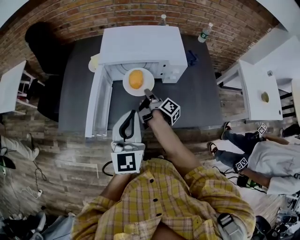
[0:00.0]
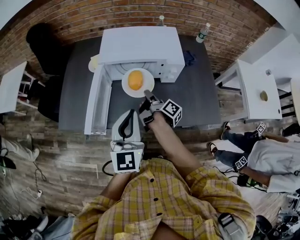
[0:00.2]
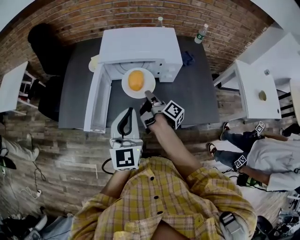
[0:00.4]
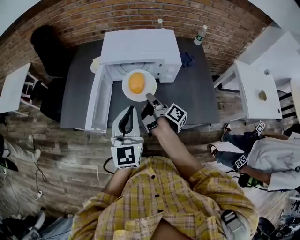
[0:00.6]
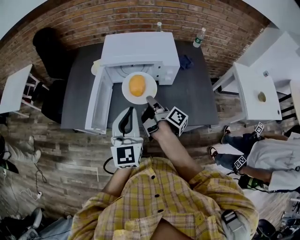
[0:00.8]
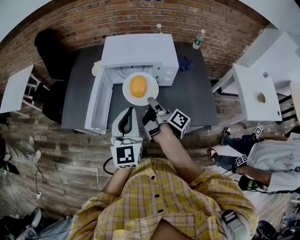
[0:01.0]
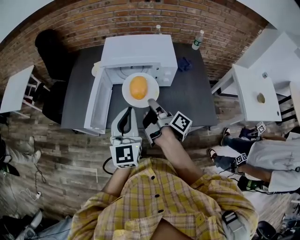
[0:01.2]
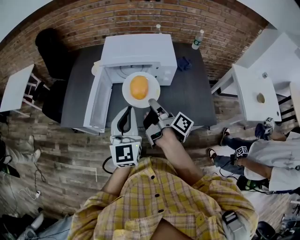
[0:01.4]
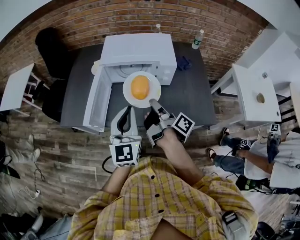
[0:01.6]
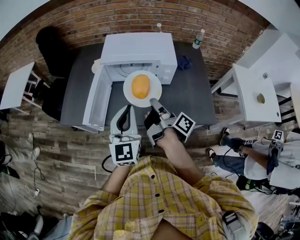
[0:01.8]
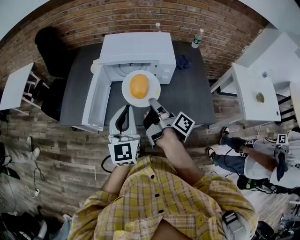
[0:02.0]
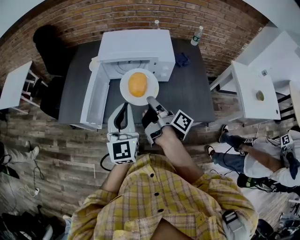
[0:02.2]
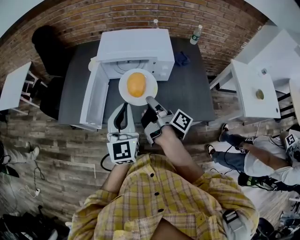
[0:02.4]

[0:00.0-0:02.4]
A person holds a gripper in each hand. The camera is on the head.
0:00.0 to 0:01.2: The right gripper goes about 20 cm upward and backward; the left gripper moves some 5 cm.
0:01.2 to 0:02.4: The grippers move only a little.

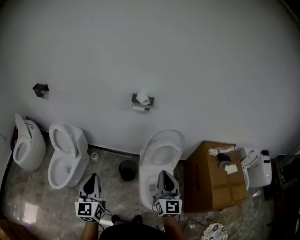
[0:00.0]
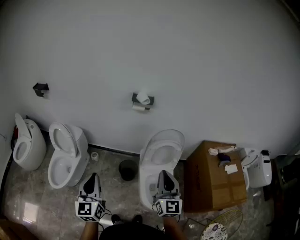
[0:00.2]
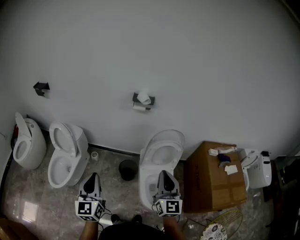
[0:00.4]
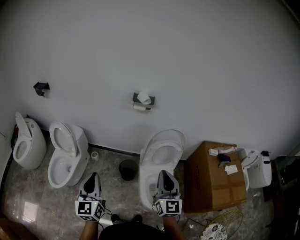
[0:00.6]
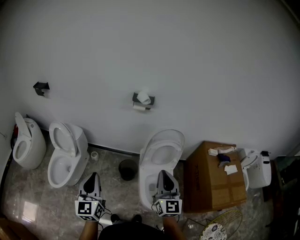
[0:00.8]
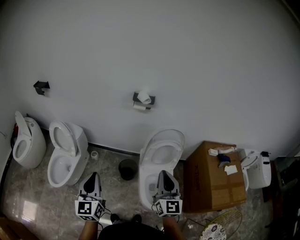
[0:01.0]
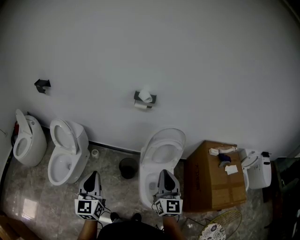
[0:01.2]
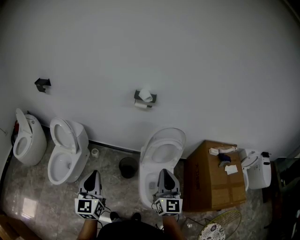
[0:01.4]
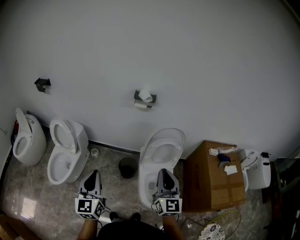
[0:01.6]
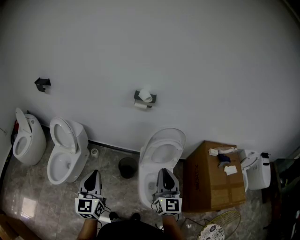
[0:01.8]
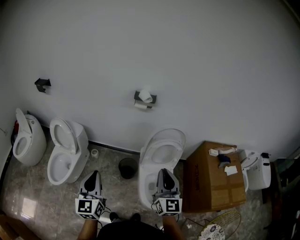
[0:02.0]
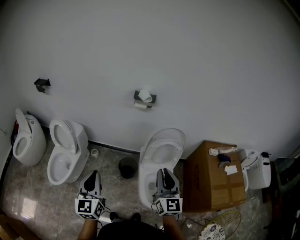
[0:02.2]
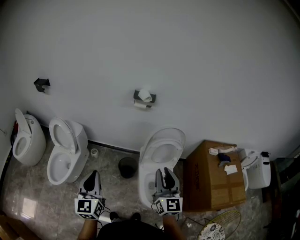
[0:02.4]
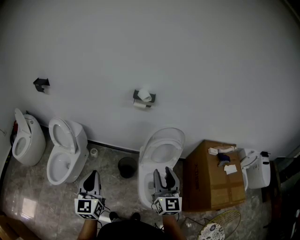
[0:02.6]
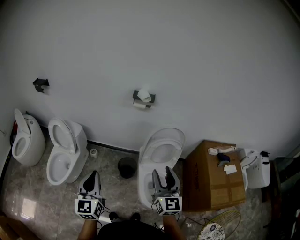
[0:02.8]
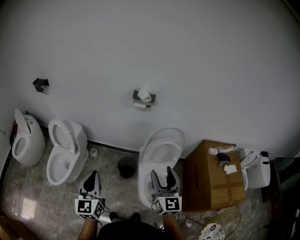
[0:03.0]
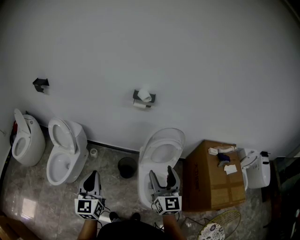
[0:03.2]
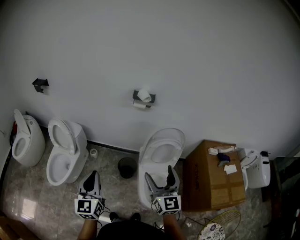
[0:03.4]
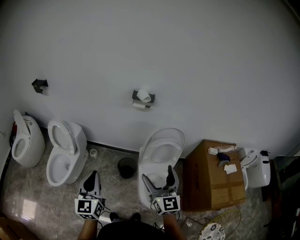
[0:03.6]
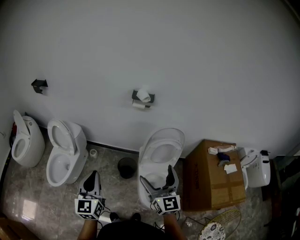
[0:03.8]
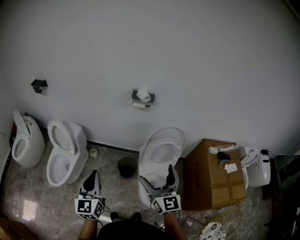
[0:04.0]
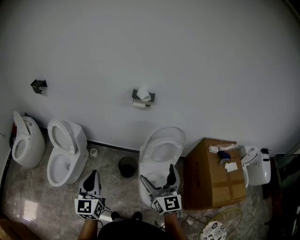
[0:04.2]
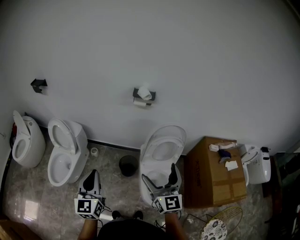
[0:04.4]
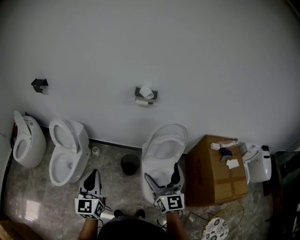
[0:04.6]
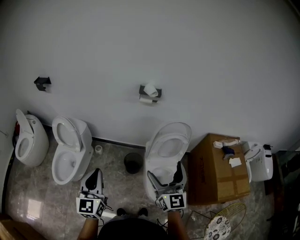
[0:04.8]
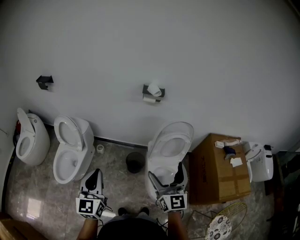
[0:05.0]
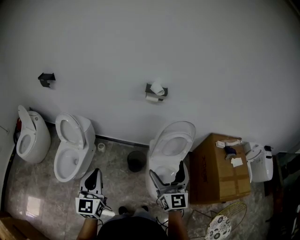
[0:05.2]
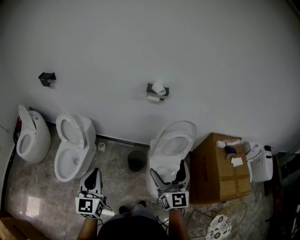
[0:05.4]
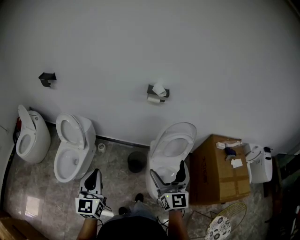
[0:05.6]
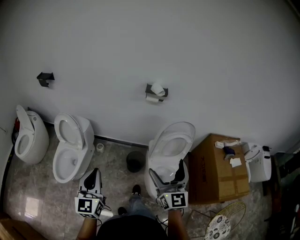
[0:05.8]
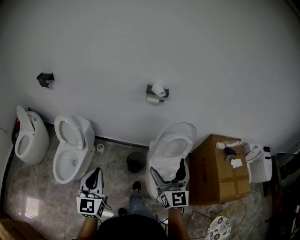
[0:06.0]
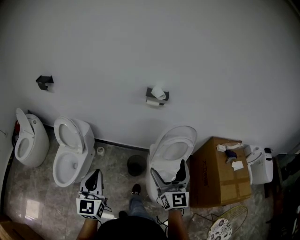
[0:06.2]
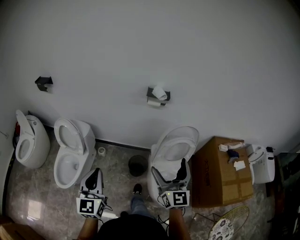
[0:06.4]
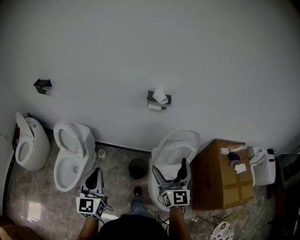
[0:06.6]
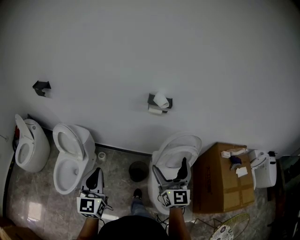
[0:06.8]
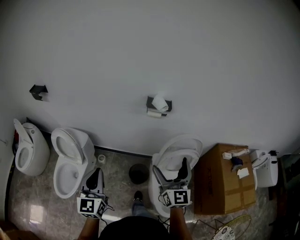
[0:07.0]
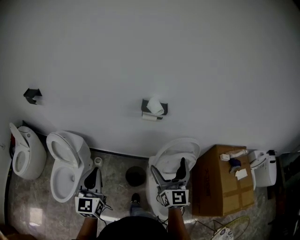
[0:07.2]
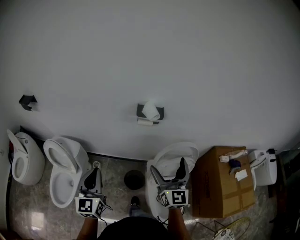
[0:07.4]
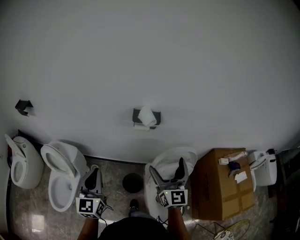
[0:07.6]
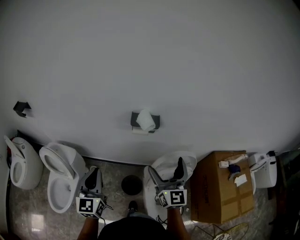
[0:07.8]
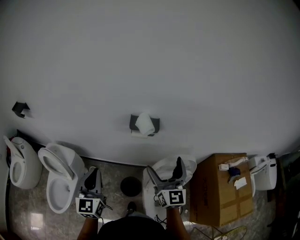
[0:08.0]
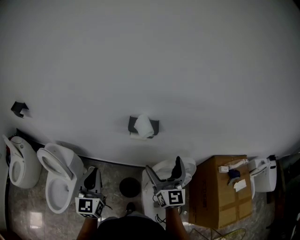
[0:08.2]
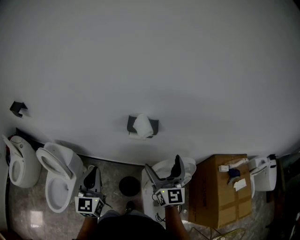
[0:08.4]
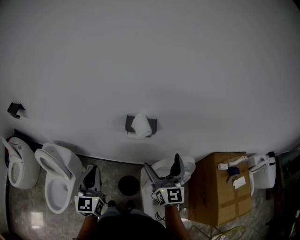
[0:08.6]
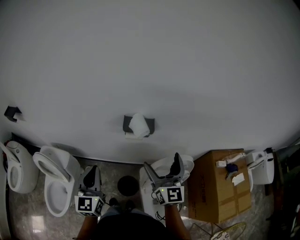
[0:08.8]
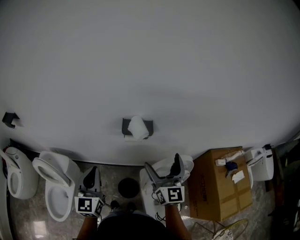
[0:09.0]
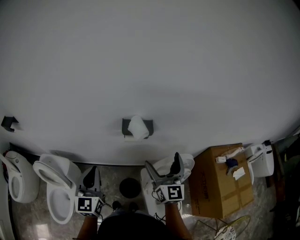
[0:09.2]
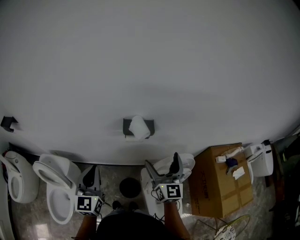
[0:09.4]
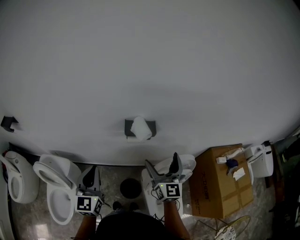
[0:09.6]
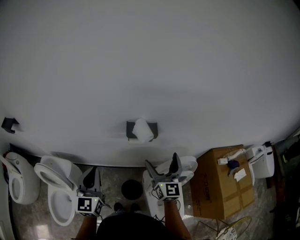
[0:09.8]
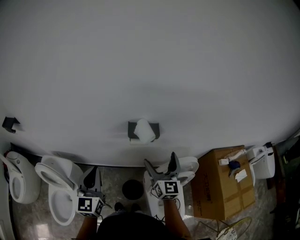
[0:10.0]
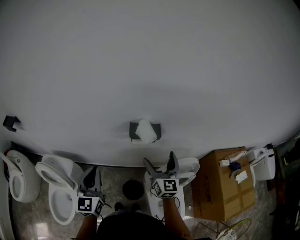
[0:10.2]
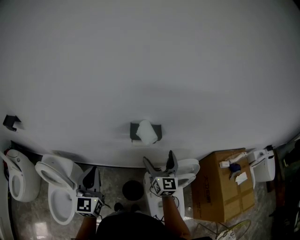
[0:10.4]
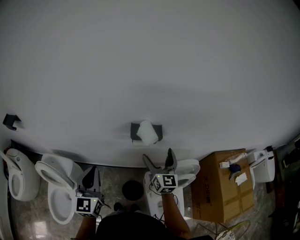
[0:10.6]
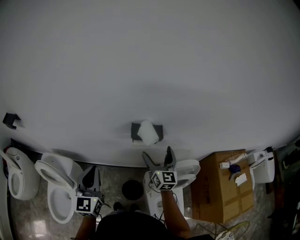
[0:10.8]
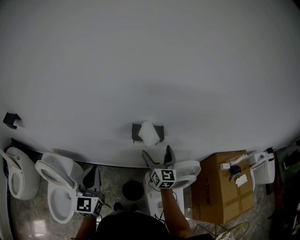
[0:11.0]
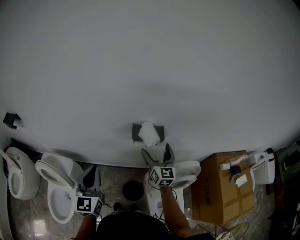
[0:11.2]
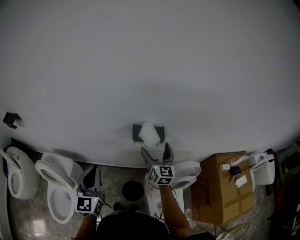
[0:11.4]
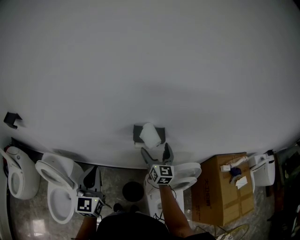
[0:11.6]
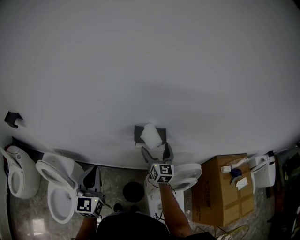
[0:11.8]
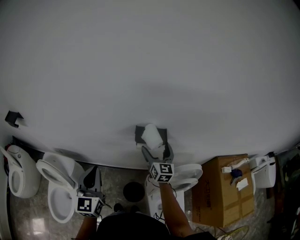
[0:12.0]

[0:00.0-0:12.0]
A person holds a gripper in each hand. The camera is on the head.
0:00.0 to 0:01.6: Both grippers stay put.
0:01.6 to 0:03.0: The right gripper opens its fingers.
0:03.0 to 0:04.4: The right gripper opens.
0:04.4 to 0:06.0: The grippers both shift to the left by about 5 cm.
0:06.0 to 0:07.6: The two grippers go about 30 cm forward.
0:07.6 to 0:09.0: Both grippers move forward, roughly 10 cm.
0:09.0 to 0:10.4: The right gripper goes roughly 10 cm downward and forward, while the left gripper changes place by approximately 5 cm.
0:10.4 to 0:12.0: The right gripper is displaced forward by about 10 cm.

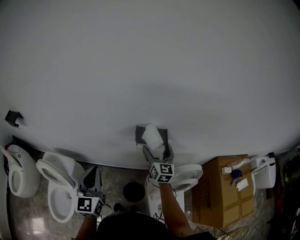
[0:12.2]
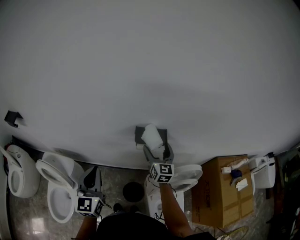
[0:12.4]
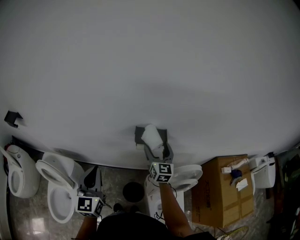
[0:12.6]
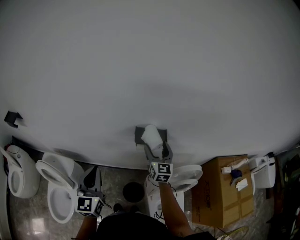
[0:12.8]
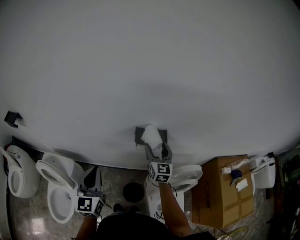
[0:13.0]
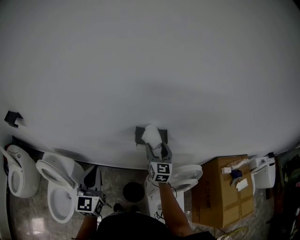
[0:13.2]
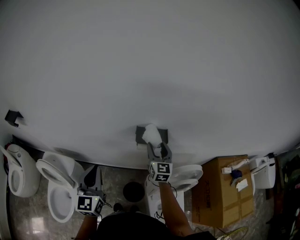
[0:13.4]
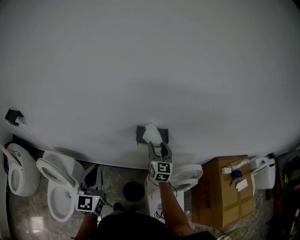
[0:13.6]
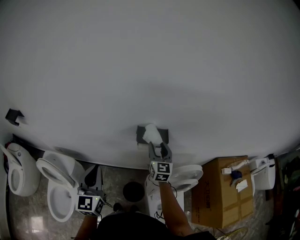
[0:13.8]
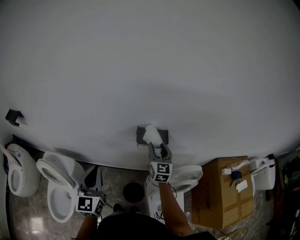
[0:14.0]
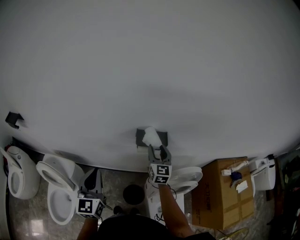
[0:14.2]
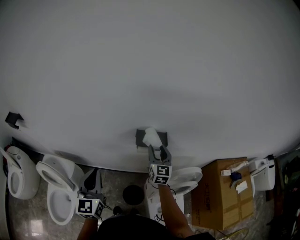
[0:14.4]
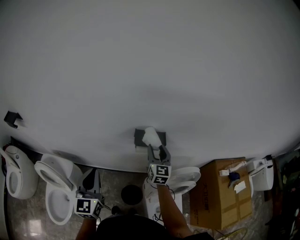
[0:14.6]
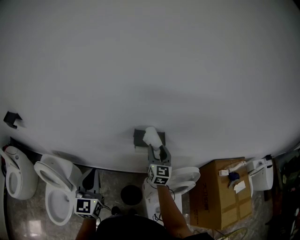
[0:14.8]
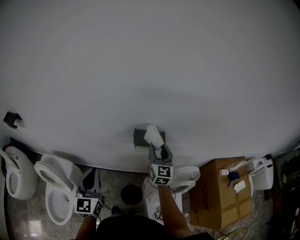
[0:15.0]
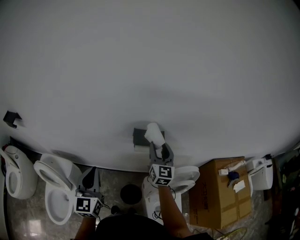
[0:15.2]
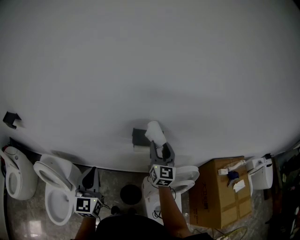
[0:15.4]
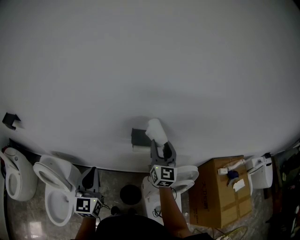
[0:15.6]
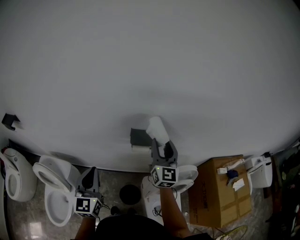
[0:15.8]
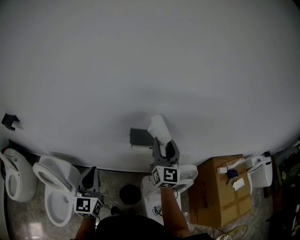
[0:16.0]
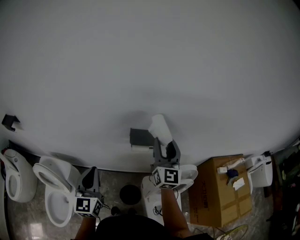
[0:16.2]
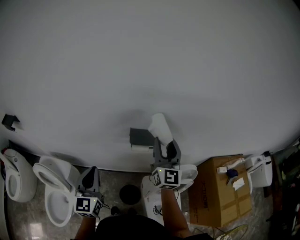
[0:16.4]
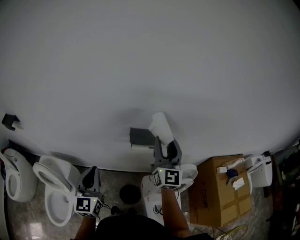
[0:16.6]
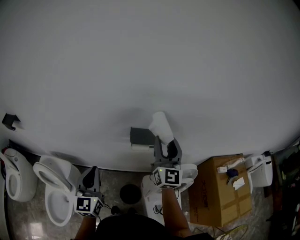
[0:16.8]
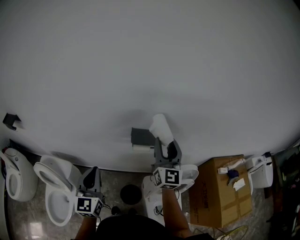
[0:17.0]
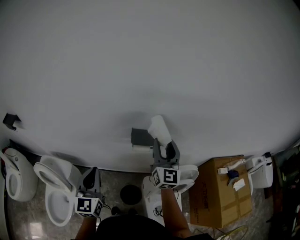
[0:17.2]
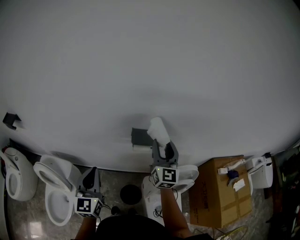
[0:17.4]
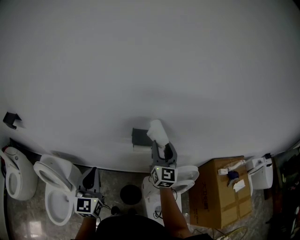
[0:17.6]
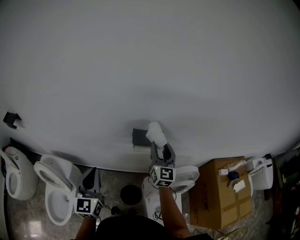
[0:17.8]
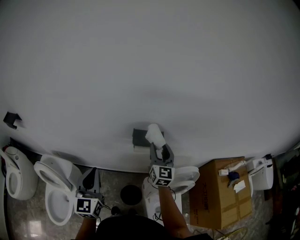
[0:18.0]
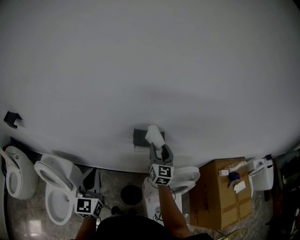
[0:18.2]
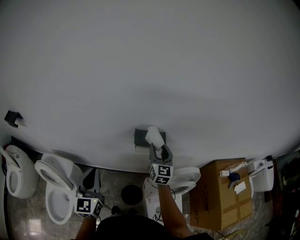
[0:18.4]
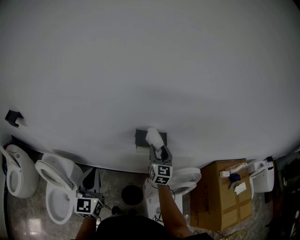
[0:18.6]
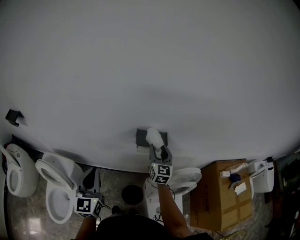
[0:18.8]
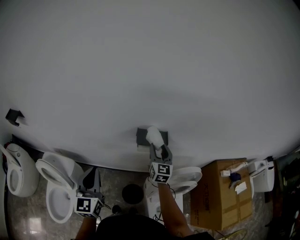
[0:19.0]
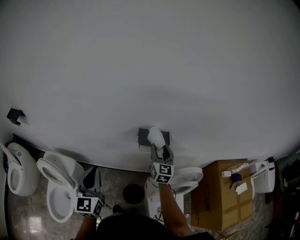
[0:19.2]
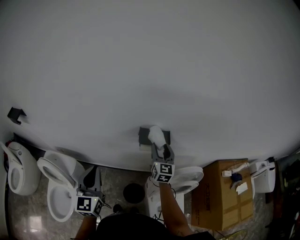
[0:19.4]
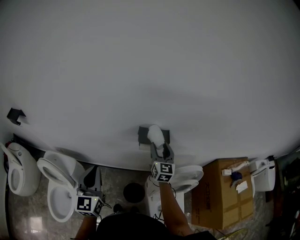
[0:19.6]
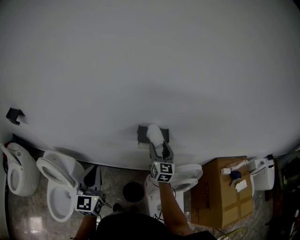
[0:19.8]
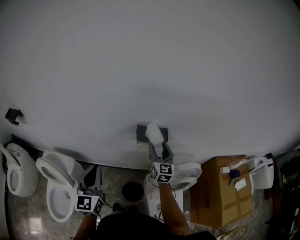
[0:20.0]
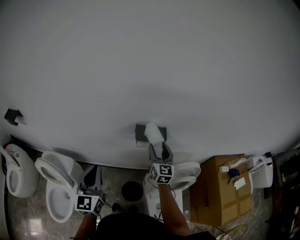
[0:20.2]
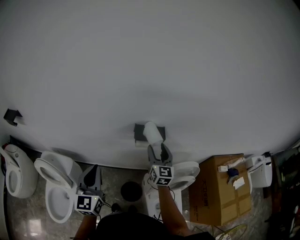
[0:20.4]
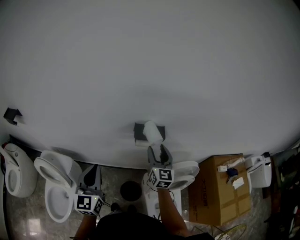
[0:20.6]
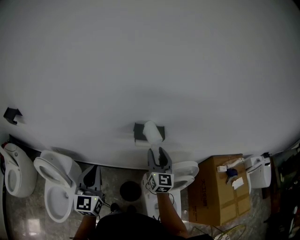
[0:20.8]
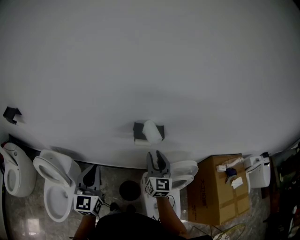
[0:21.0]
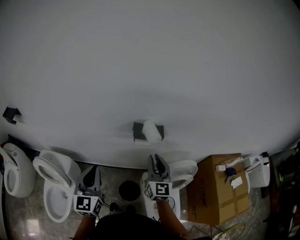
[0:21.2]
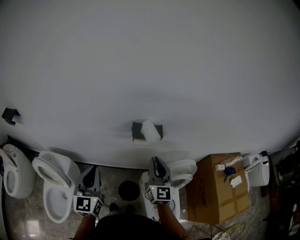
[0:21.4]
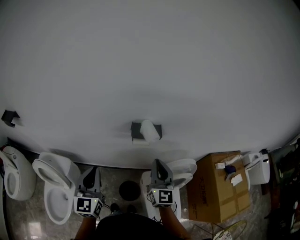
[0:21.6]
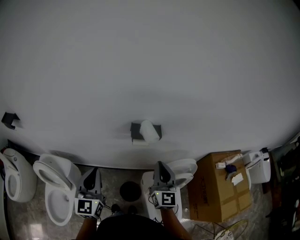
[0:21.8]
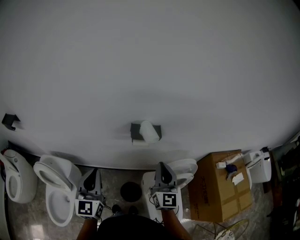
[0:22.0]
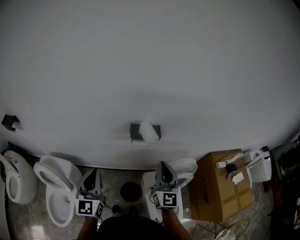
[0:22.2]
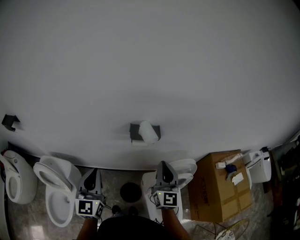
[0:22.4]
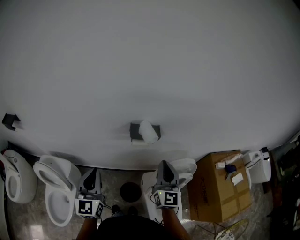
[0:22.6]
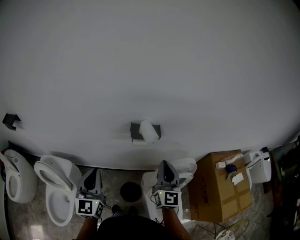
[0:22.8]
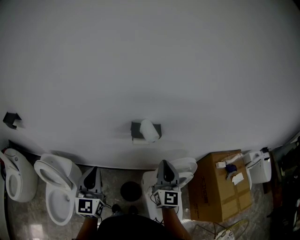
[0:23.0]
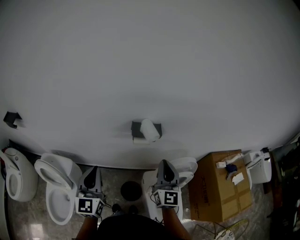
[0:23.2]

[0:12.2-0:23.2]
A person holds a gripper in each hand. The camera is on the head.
0:12.2 to 0:13.8: The right gripper closes its fingers.
0:13.8 to 0:15.4: The right gripper is displaced upward by approximately 10 cm.
0:15.4 to 0:17.0: The right gripper heads upward, covering roughly 10 cm.
0:17.0 to 0:18.4: The right gripper is displaced downward by about 15 cm.
0:18.4 to 0:20.0: There are only small adjustments of the grippers.
0:20.0 to 0:21.6: The right gripper travels backward and upward by approximately 15 cm, and closes up.
0:21.6 to 0:23.2: The grippers make only small movements.
